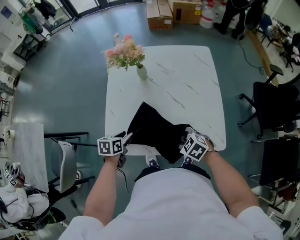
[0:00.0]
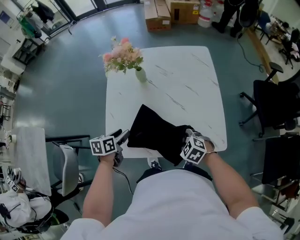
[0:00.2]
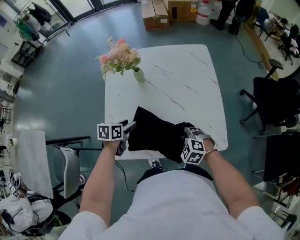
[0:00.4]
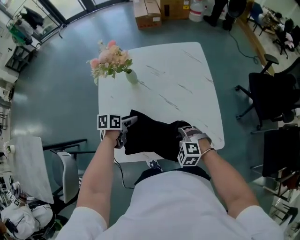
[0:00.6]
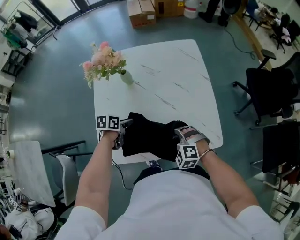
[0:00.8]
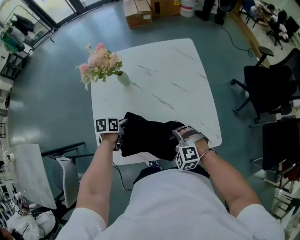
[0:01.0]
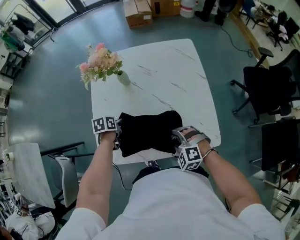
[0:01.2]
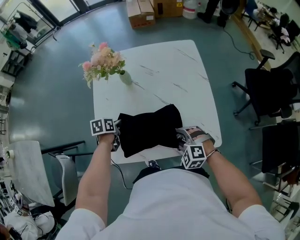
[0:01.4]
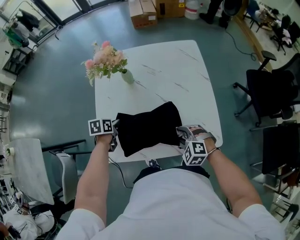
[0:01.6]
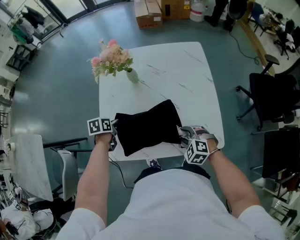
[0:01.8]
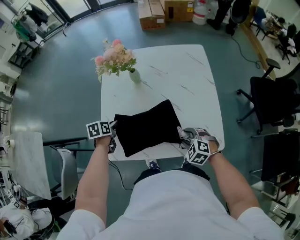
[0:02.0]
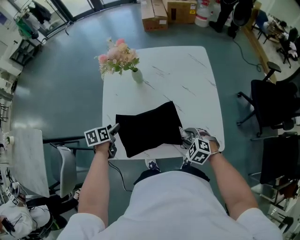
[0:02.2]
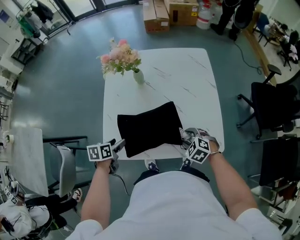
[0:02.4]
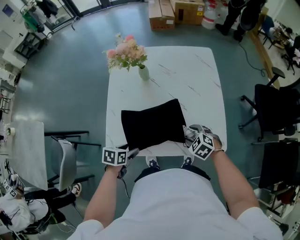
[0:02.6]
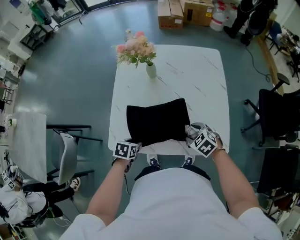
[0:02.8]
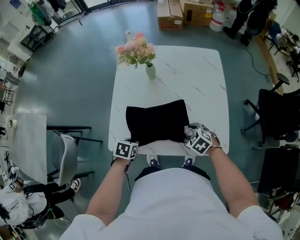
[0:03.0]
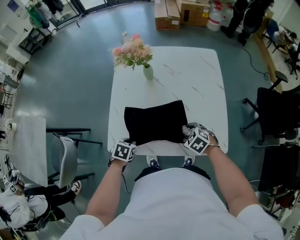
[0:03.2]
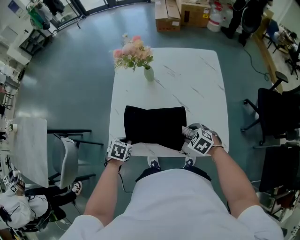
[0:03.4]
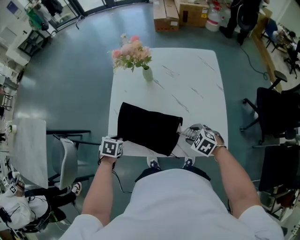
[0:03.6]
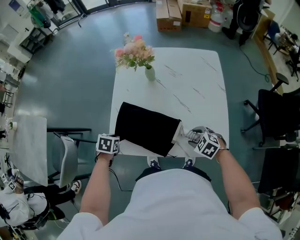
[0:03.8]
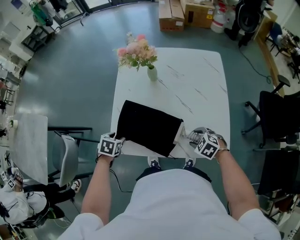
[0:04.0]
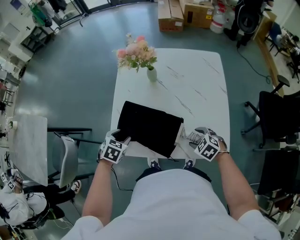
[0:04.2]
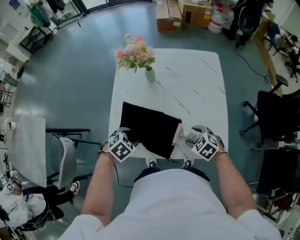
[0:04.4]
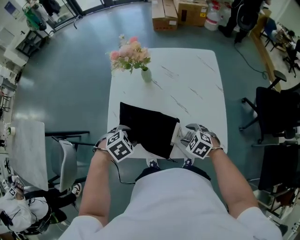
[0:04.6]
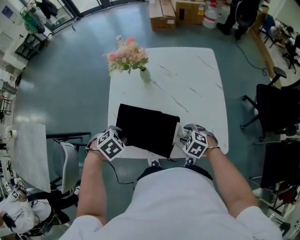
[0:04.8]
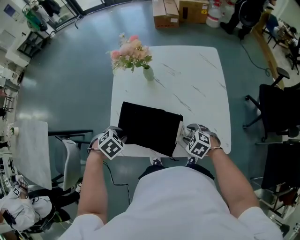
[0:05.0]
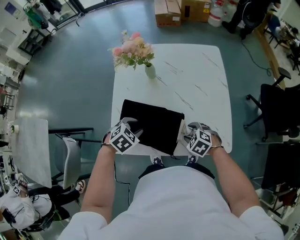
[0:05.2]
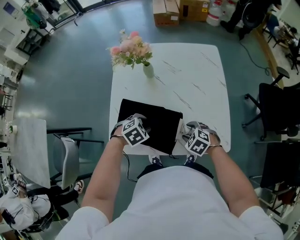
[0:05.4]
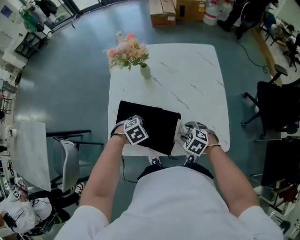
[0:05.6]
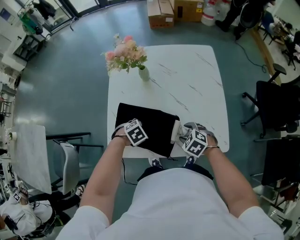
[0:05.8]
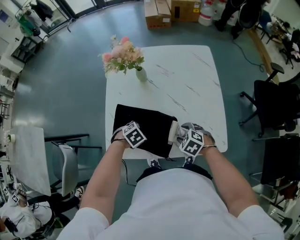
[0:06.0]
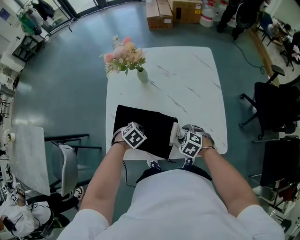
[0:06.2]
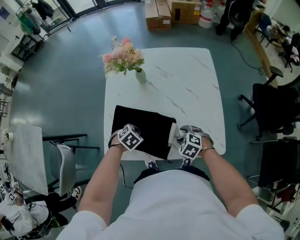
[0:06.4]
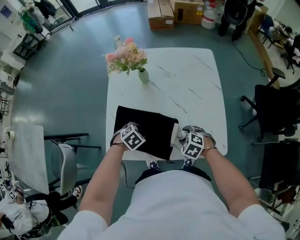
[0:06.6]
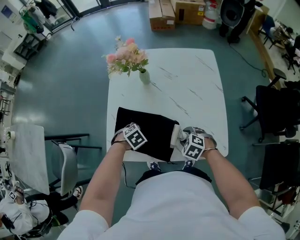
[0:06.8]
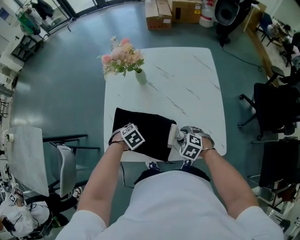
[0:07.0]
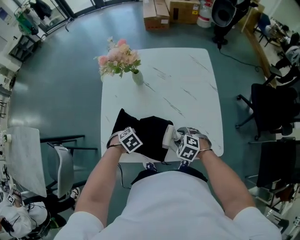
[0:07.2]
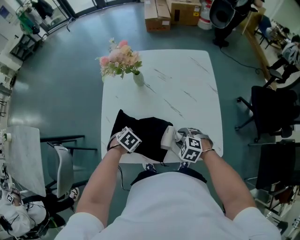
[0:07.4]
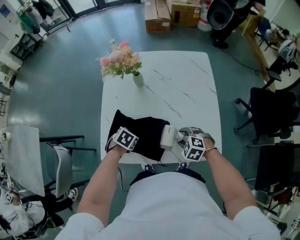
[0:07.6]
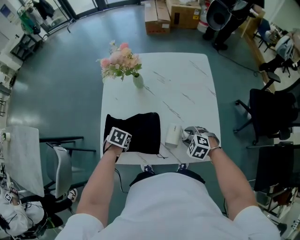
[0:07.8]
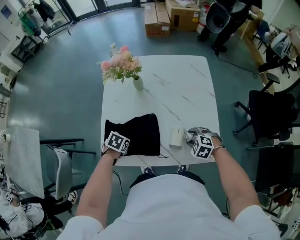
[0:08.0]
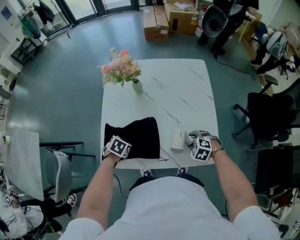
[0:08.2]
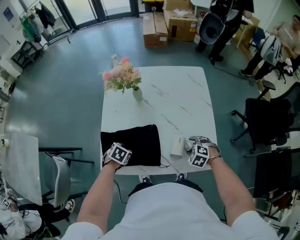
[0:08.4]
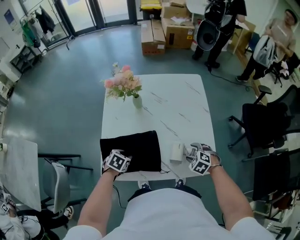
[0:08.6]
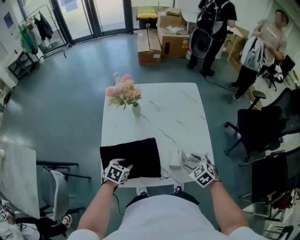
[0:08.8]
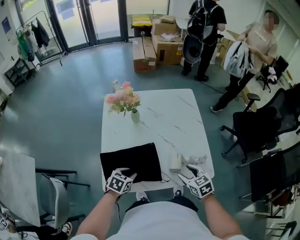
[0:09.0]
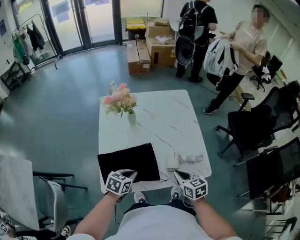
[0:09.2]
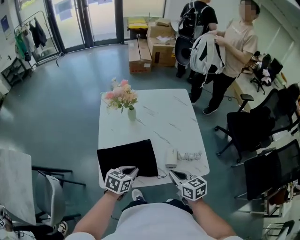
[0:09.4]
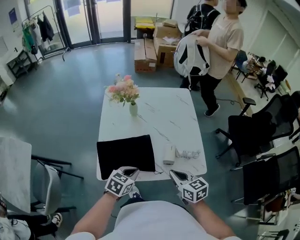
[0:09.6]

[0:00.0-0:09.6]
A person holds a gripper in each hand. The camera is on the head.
0:00.0 to 0:01.6: The right gripper swivels some 30 degrees. Meanwhile the left gripper ends up some 10 cm from where it was, and closes its fingers.
0:01.6 to 0:03.2: The left gripper heads backward, covering some 15 cm, rotates roughly 20 degrees, and opens and closes again. The right gripper turns by about 20 degrees.
0:03.2 to 0:04.8: The left gripper moves upward, roughly 10 cm, swivels approximately 40 degrees, and opens up.
0:04.8 to 0:06.4: The left gripper goes about 10 cm downward, and closes its fingers.
0:06.4 to 0:08.0: The left gripper changes its angle by some 30 degrees, and opens, then closes once more. Meanwhile the right gripper ends up some 10 cm from where it was.
0:08.0 to 0:09.6: The right gripper moves upward, backward and to the left, some 20 cm, tilts its fingers some 40 degrees upward, and closes up. Meanwhile the left gripper is displaced upward, to the right and backward by approximately 20 cm, tilts its fingers approximately 30 degrees upward, and opens, then closes again.

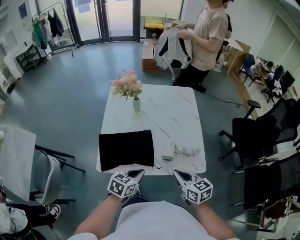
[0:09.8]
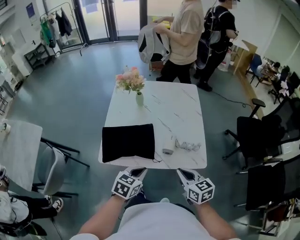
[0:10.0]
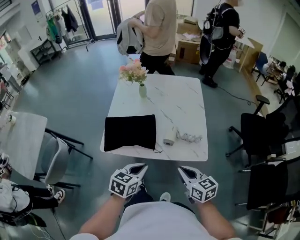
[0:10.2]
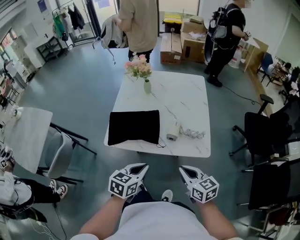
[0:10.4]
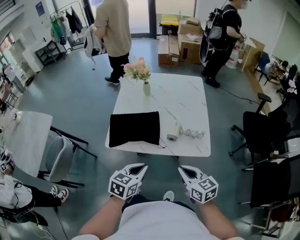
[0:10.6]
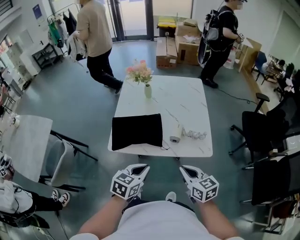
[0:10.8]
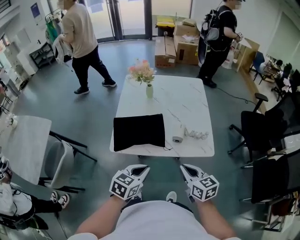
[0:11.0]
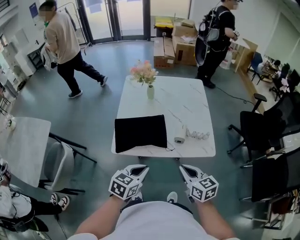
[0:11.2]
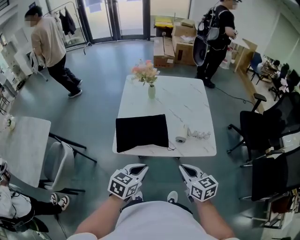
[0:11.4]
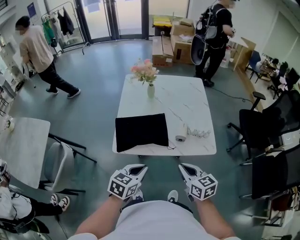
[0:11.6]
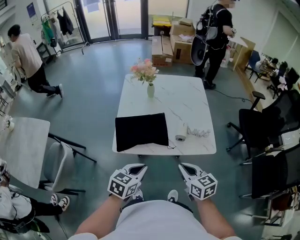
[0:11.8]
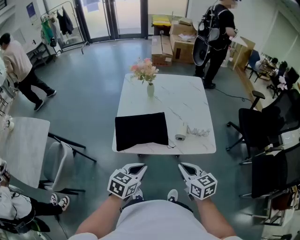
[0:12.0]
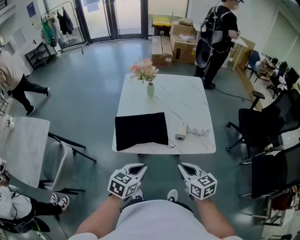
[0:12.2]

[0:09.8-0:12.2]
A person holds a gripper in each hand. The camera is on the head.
0:09.8 to 0:11.0: The right gripper shifts some 10 cm backward. Meanwhile the left gripper travels backward and upward by roughly 15 cm.
0:11.0 to 0:12.2: The grippers stay close to where they were, moving slightly.

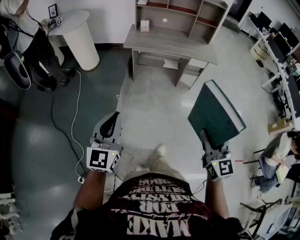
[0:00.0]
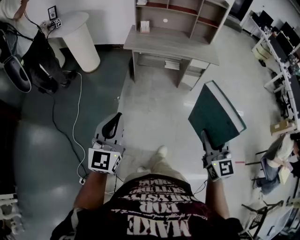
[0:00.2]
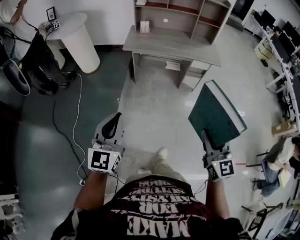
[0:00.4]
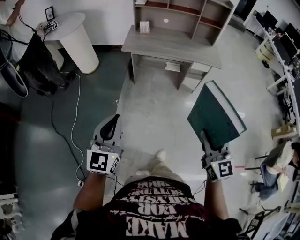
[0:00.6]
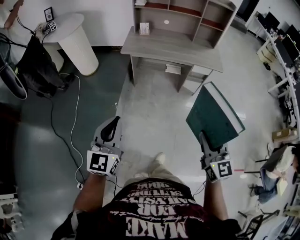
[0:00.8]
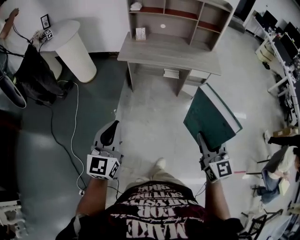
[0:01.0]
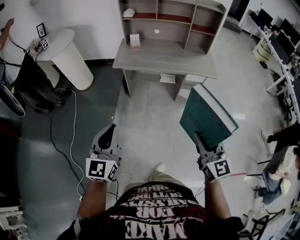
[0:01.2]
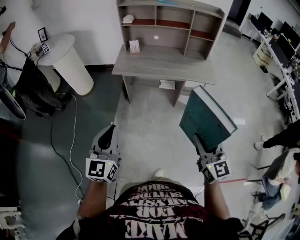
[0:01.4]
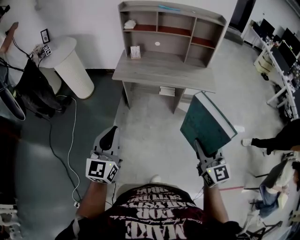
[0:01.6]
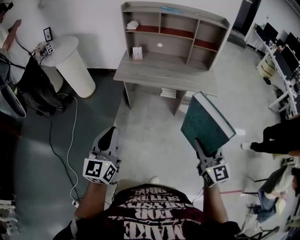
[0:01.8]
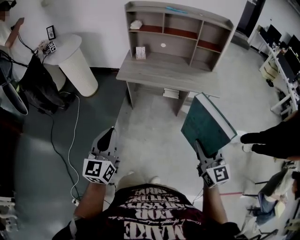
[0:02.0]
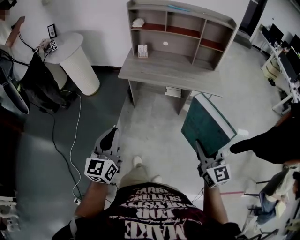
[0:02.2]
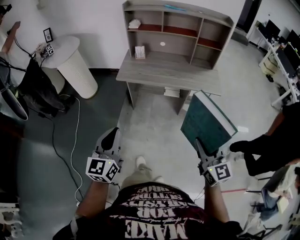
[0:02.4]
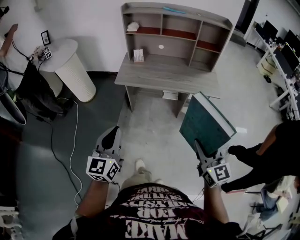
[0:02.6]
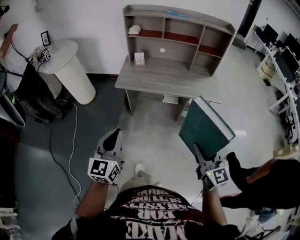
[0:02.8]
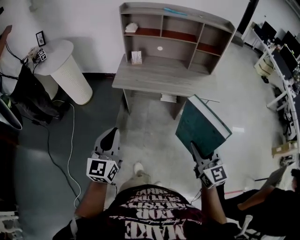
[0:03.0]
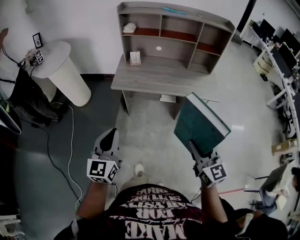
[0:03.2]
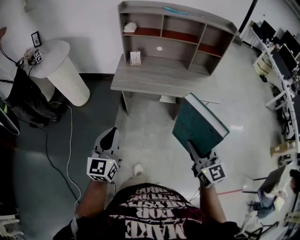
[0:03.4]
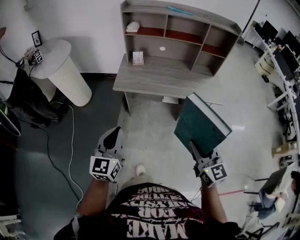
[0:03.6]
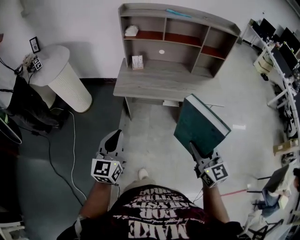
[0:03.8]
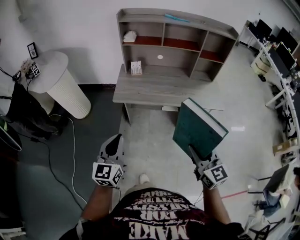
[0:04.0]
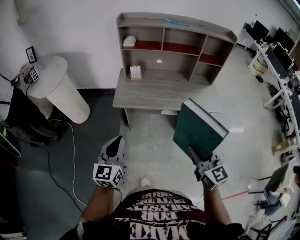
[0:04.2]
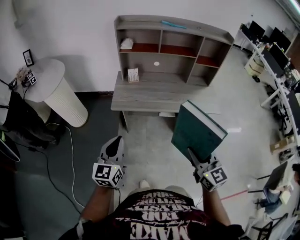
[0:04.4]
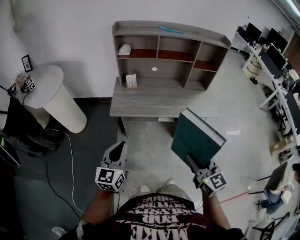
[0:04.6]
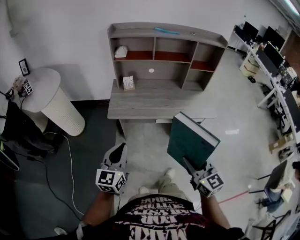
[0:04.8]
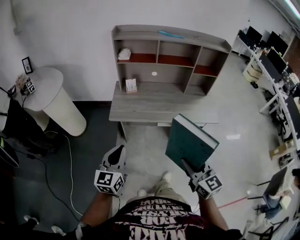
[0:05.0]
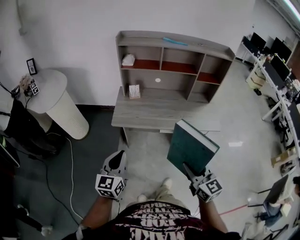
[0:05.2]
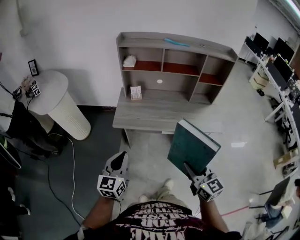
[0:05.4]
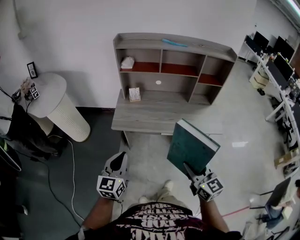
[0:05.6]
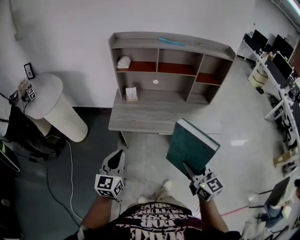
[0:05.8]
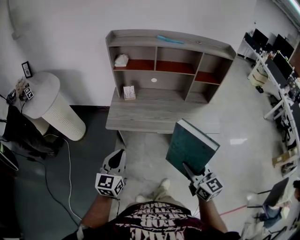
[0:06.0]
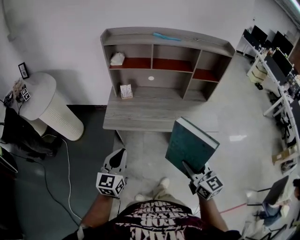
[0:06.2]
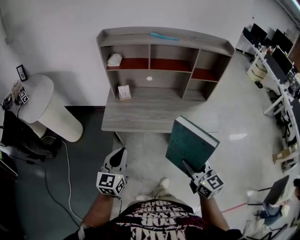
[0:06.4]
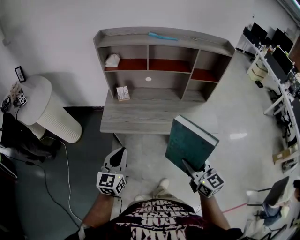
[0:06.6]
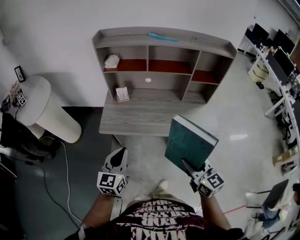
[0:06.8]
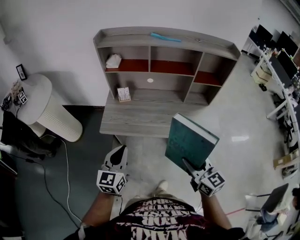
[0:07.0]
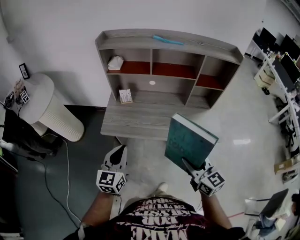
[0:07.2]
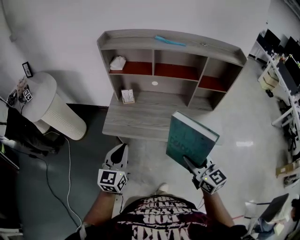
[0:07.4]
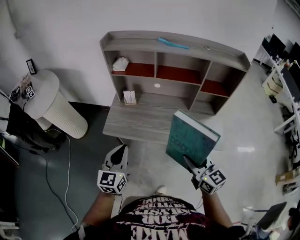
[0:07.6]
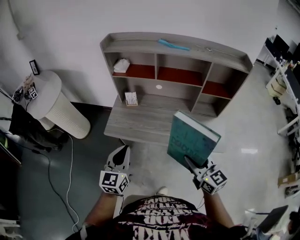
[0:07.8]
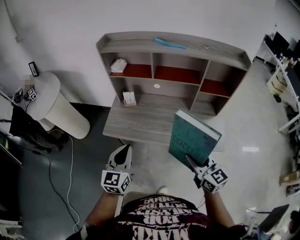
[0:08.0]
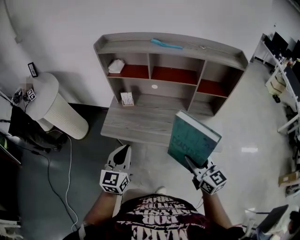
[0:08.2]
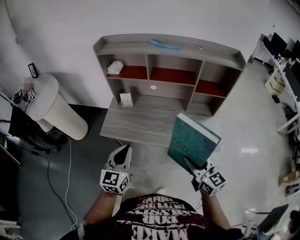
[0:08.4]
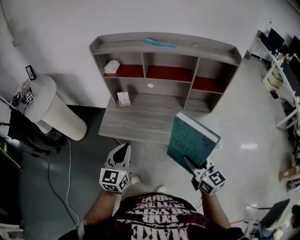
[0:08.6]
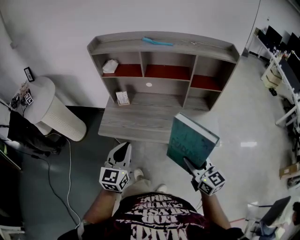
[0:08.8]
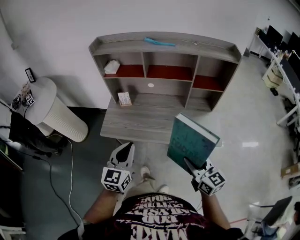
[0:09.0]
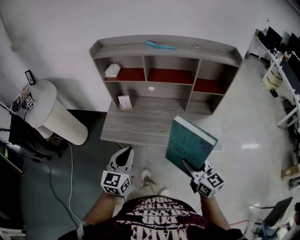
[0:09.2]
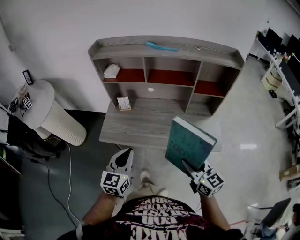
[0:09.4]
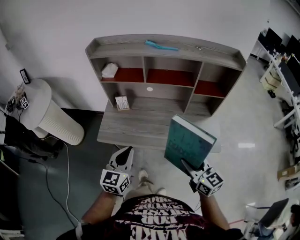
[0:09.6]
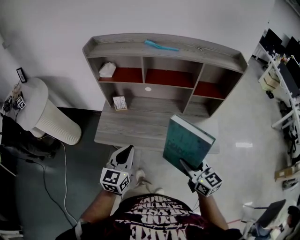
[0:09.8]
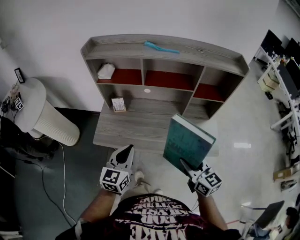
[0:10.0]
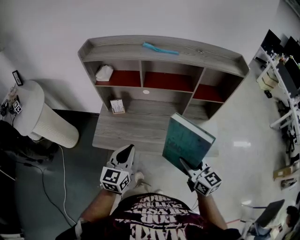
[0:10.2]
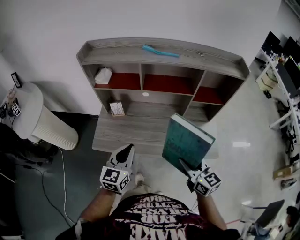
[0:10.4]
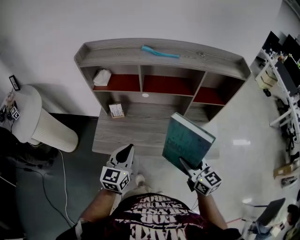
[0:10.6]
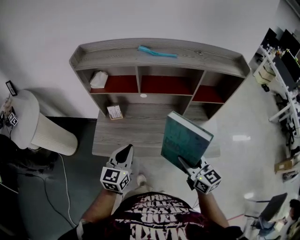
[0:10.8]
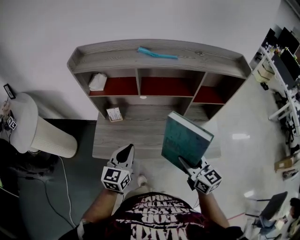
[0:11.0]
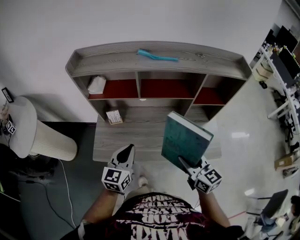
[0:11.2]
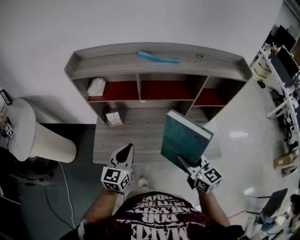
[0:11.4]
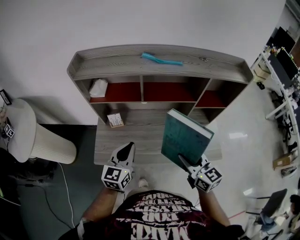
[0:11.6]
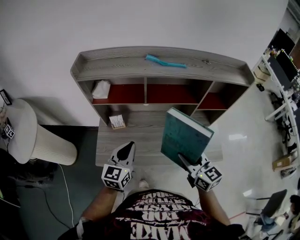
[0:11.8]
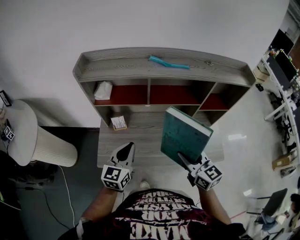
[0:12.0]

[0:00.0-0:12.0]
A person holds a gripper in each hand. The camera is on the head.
0:00.0 to 0:01.6: The two grippers go about 25 cm forward and to the right.
0:01.6 to 0:03.0: Both grippers travel together forward, about 10 cm.
0:03.0 to 0:04.4: The left gripper heads forward, covering approximately 15 cm, while the right gripper moves forward and to the left, approximately 15 cm.
0:04.4 to 0:06.0: Both grippers move forward and to the right, some 10 cm.
0:06.0 to 0:07.6: Both grippers travel together forward and to the right, approximately 15 cm.
0:07.6 to 0:09.0: The grippers both shift to the right by roughly 5 cm.
0:09.0 to 0:10.4: The two grippers go some 10 cm forward.
0:10.4 to 0:12.0: The two grippers go roughly 15 cm forward and to the left.
